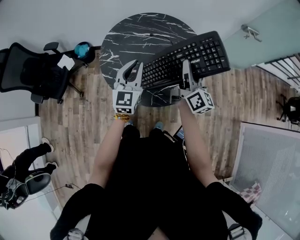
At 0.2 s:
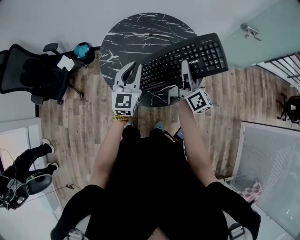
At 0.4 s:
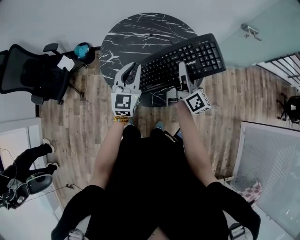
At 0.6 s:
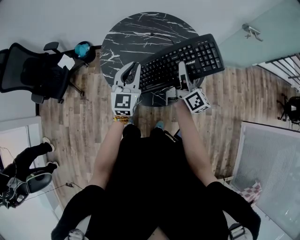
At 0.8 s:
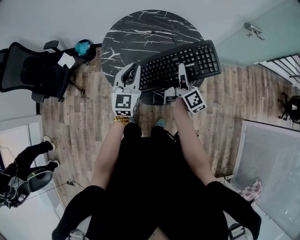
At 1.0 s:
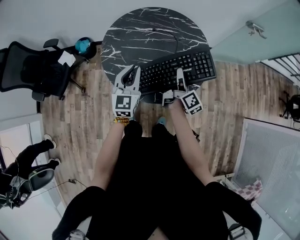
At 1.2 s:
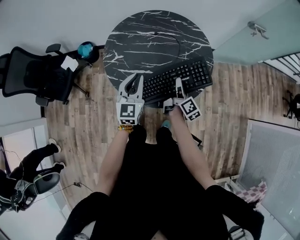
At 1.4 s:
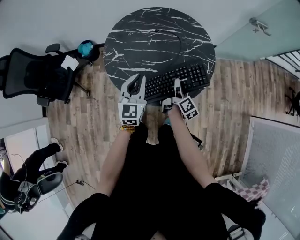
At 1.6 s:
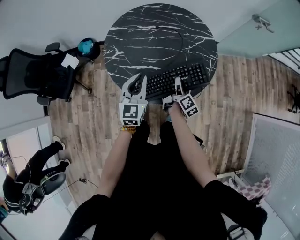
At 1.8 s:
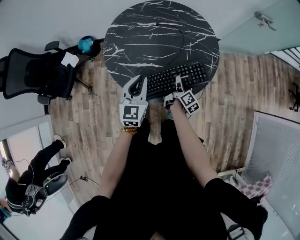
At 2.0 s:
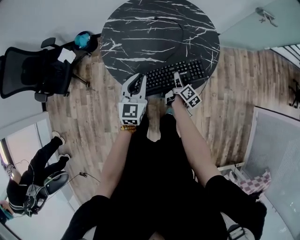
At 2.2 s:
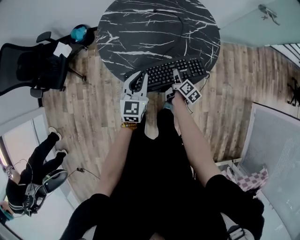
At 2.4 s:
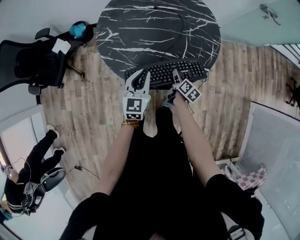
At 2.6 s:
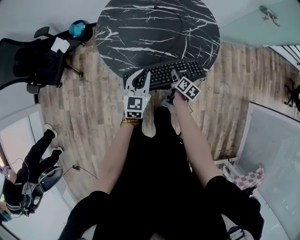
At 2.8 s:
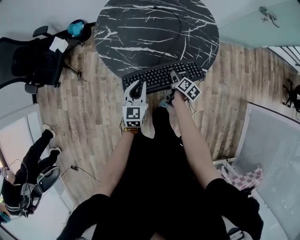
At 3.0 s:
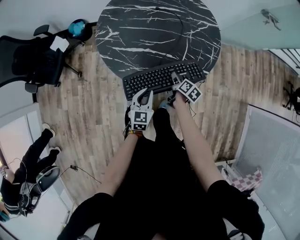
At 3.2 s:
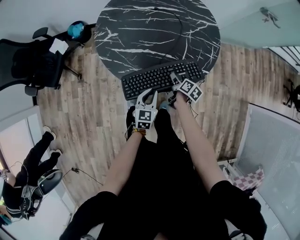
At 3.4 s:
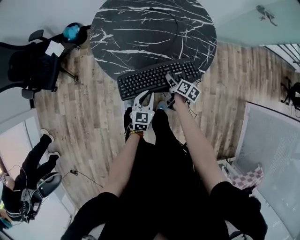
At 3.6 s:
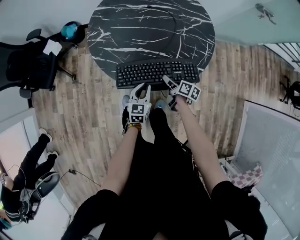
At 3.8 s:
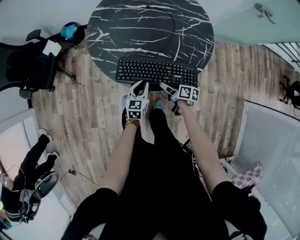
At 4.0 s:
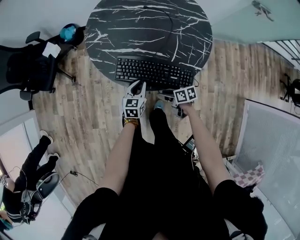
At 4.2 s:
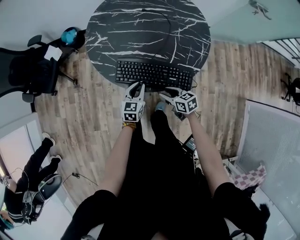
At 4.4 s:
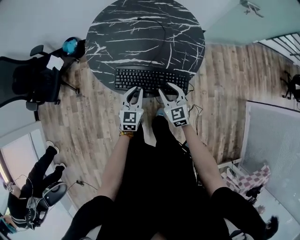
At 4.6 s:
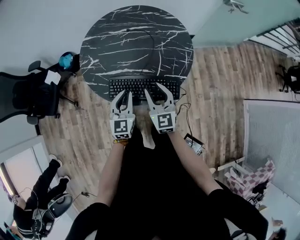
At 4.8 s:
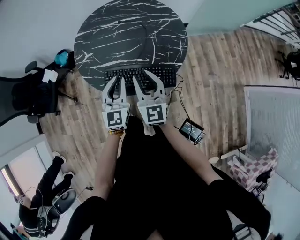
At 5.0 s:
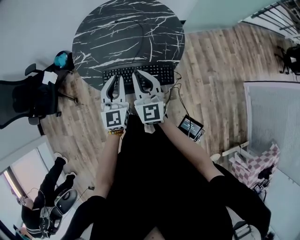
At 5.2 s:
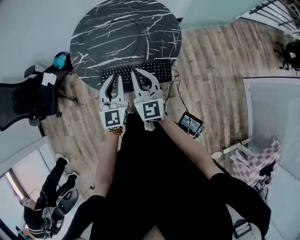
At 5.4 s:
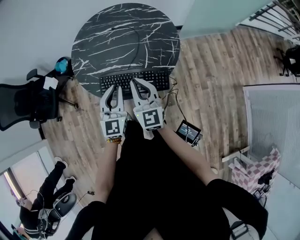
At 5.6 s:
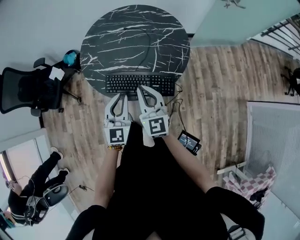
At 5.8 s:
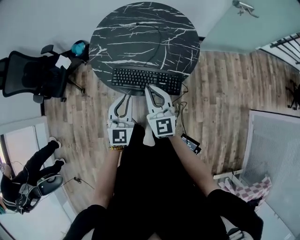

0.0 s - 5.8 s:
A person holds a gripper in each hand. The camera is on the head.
0.0 s - 1.4 s: The left gripper moves downward, some 5 cm, while the right gripper shifts roughly 25 cm downward, and rotates some 40 degrees.
1.4 s - 2.8 s: The right gripper goes about 15 cm downward, points its fingers roughly 30 degrees further downward, and opens; the left gripper is displaced downward and backward by about 15 cm.
2.8 s - 4.4 s: The right gripper goes some 15 cm upward, and rolls counterclockwise, seen from behind, by roughly 70 degrees, while the left gripper moves some 10 cm downward and comes back.
4.4 s - 5.8 s: The right gripper shifts some 15 cm upward, changes its angle by approximately 20 degrees, and closes up. The left gripper moves upward and backward, about 15 cm.

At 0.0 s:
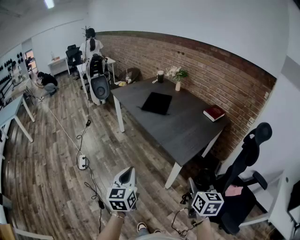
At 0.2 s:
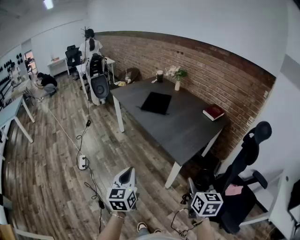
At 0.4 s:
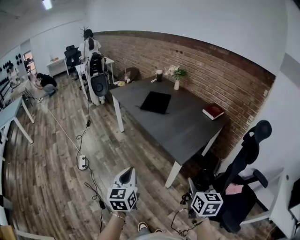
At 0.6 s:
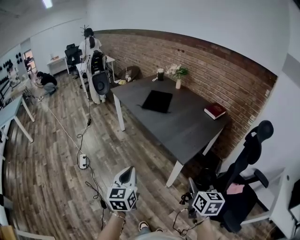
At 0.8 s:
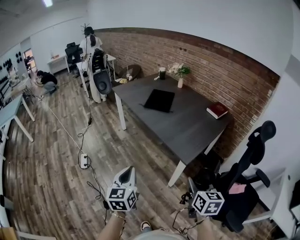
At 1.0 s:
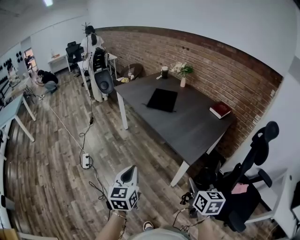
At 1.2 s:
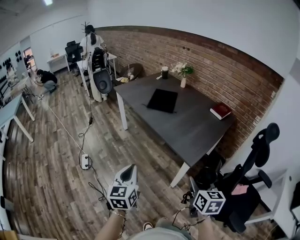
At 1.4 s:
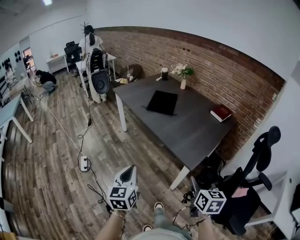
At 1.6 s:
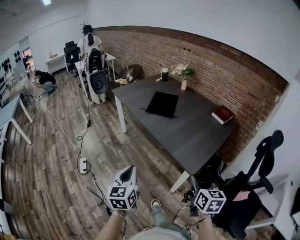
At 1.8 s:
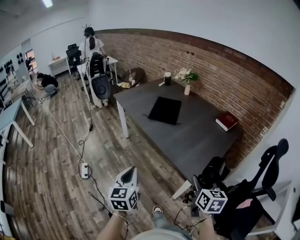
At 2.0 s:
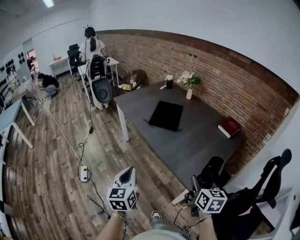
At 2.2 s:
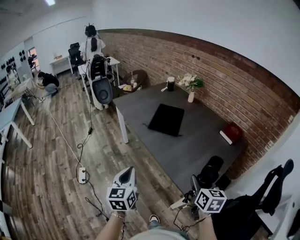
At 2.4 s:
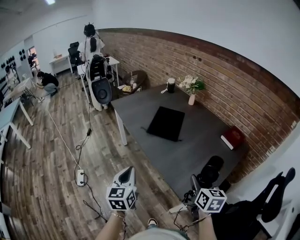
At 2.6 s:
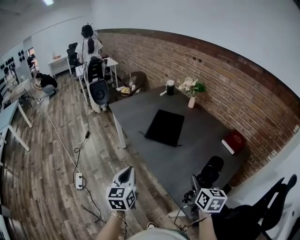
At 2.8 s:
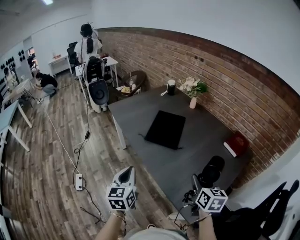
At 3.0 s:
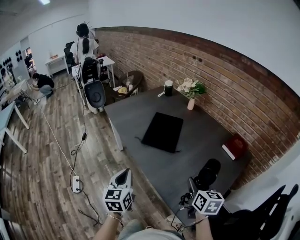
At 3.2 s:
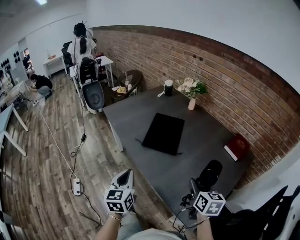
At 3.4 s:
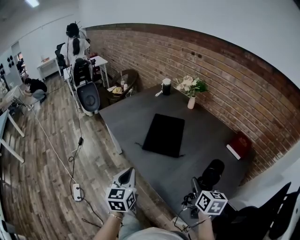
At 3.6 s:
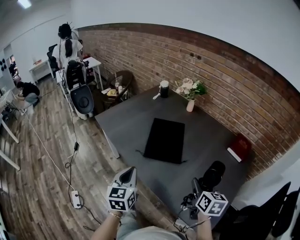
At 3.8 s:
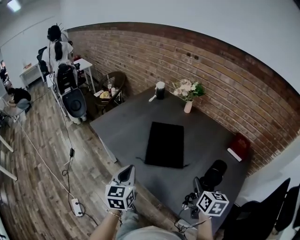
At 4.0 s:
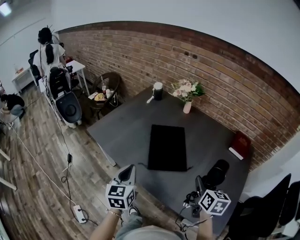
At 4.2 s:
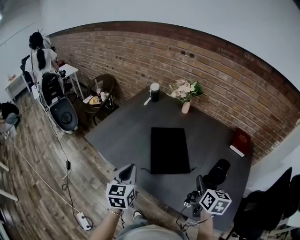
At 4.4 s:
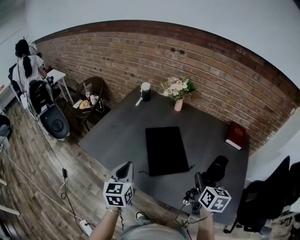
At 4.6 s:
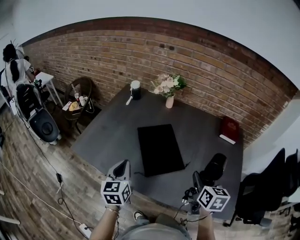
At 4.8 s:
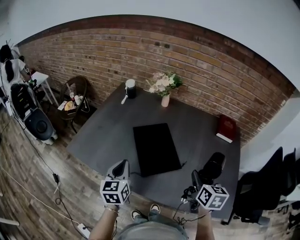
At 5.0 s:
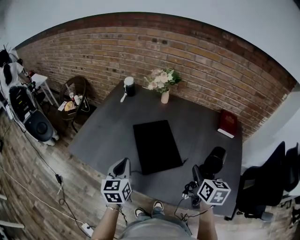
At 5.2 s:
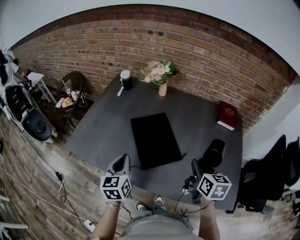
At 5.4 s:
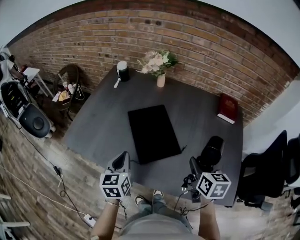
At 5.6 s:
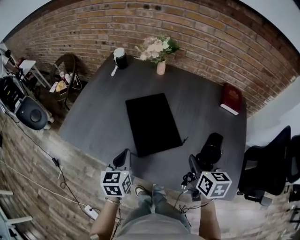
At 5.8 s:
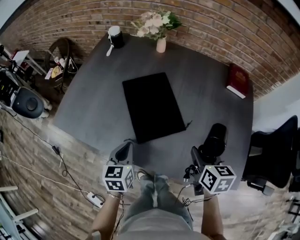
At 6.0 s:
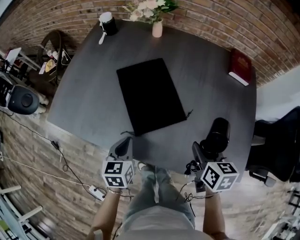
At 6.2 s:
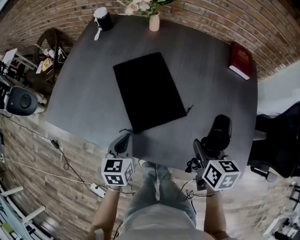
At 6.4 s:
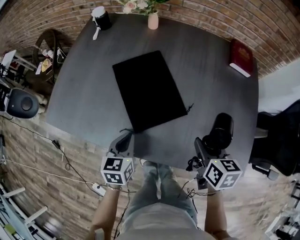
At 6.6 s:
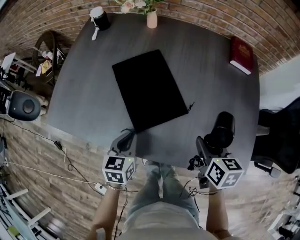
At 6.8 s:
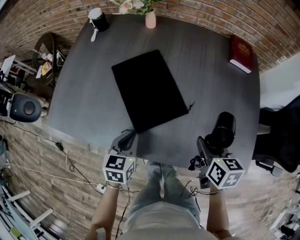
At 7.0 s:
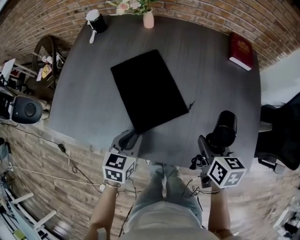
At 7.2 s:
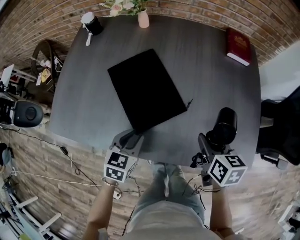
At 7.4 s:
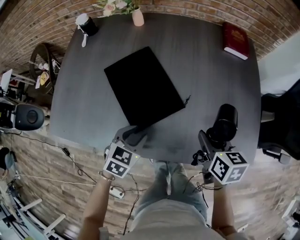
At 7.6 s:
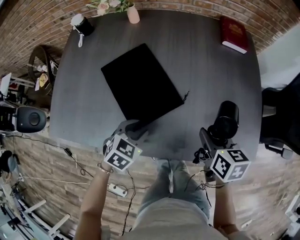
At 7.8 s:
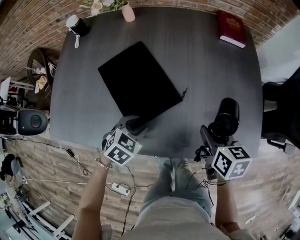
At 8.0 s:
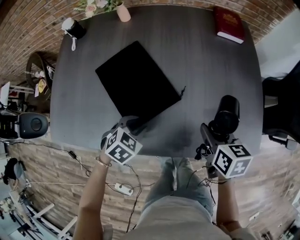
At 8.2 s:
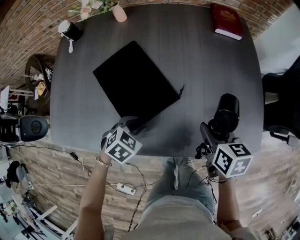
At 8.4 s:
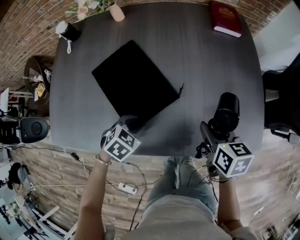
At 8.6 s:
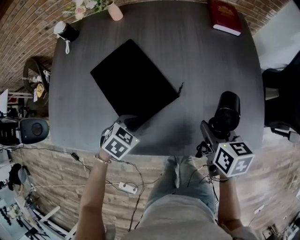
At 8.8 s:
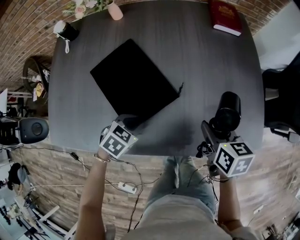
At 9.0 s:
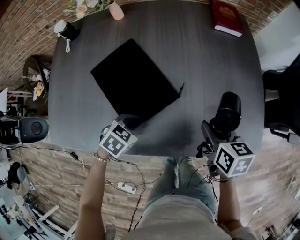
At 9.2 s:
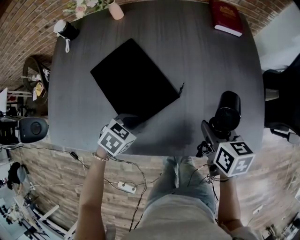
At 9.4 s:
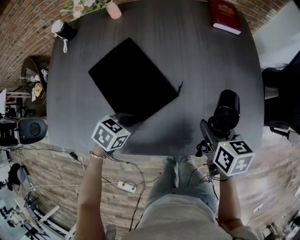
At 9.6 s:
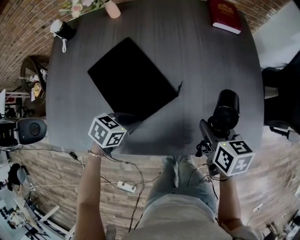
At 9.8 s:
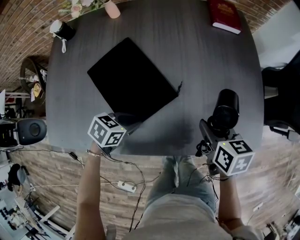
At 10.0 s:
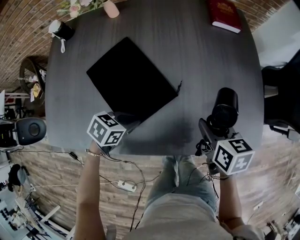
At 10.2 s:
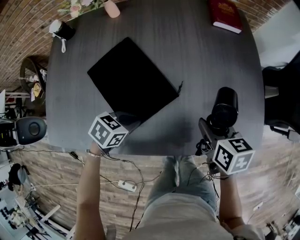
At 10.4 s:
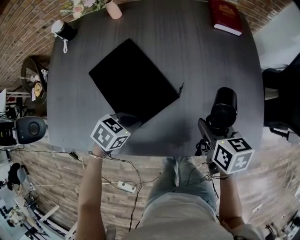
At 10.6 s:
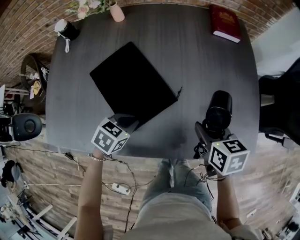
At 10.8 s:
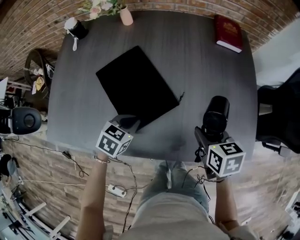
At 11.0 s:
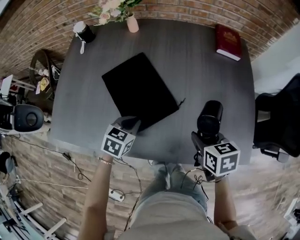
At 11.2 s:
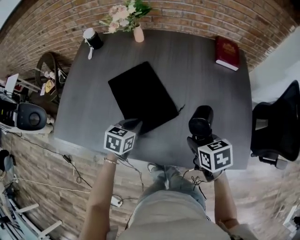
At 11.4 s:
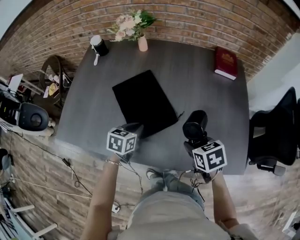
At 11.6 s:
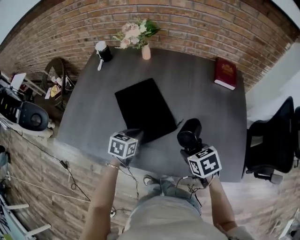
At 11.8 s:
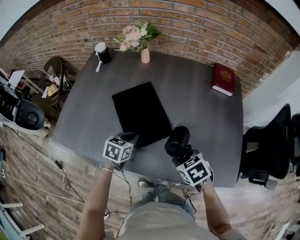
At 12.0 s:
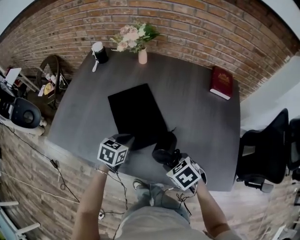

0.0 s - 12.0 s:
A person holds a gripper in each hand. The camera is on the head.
0.0 s - 1.6 s: The two grippers go about 10 cm forward and to the left.
1.6 s - 3.0 s: The two grippers go roughly 35 cm forward.
3.0 s - 4.4 s: The left gripper shifts by approximately 35 cm, and rotates about 30 degrees. The right gripper ends up about 20 cm from where it was, and swivels about 30 degrees.
4.4 s - 6.0 s: The left gripper heads downward and to the right, covering roughly 20 cm, and swivels some 20 degrees; the right gripper goes some 10 cm downward.
6.0 s - 7.6 s: The left gripper is displaced to the right by approximately 10 cm, turns by roughly 50 degrees, and opens up.
7.6 s - 9.0 s: The left gripper closes its fingers.
9.0 s - 10.4 s: There are only small adjustments of the grippers.
10.4 s - 12.0 s: The left gripper travels upward by approximately 5 cm, and rotates approximately 40 degrees. Meanwhile the right gripper shifts by approximately 10 cm, and twists some 50 degrees counterclockwise, seen from behind.

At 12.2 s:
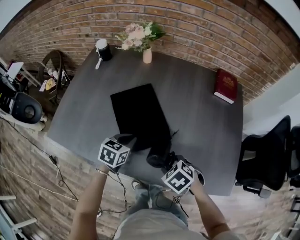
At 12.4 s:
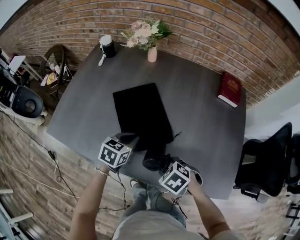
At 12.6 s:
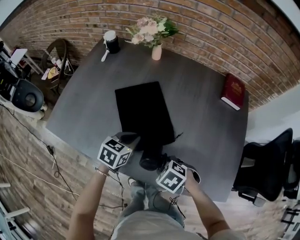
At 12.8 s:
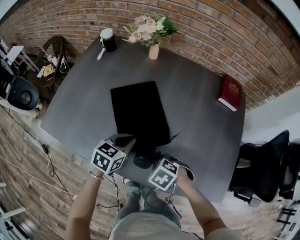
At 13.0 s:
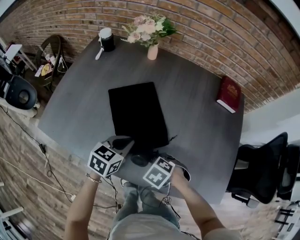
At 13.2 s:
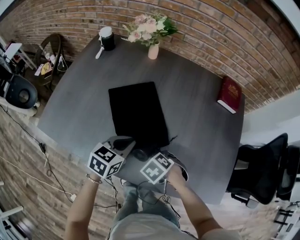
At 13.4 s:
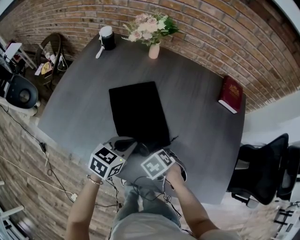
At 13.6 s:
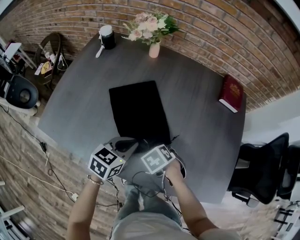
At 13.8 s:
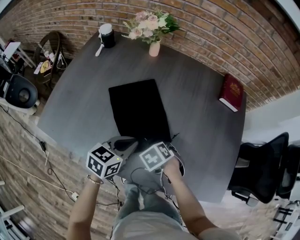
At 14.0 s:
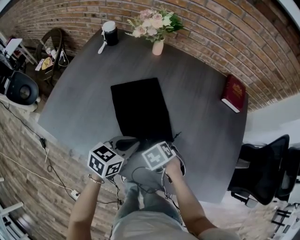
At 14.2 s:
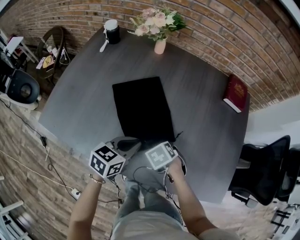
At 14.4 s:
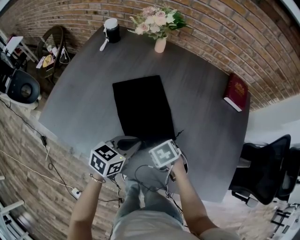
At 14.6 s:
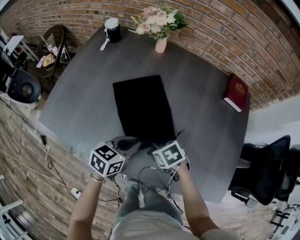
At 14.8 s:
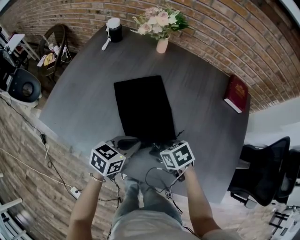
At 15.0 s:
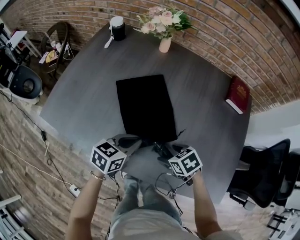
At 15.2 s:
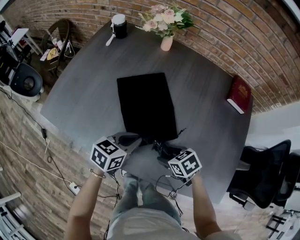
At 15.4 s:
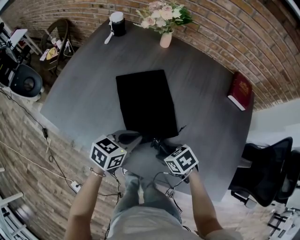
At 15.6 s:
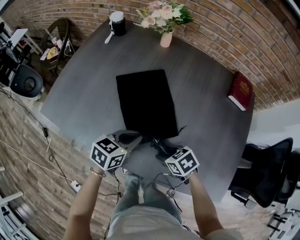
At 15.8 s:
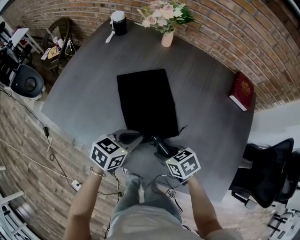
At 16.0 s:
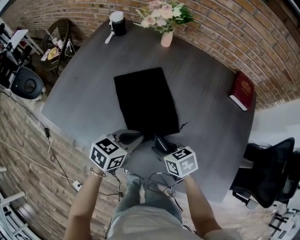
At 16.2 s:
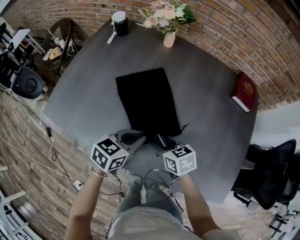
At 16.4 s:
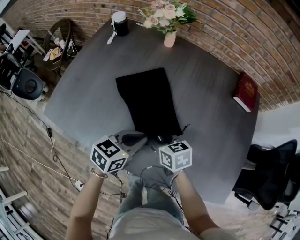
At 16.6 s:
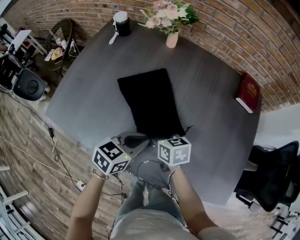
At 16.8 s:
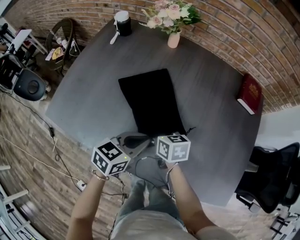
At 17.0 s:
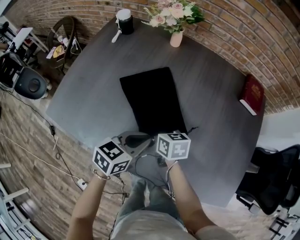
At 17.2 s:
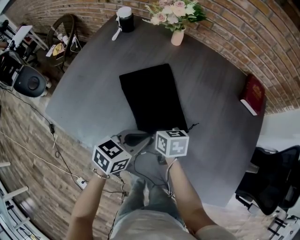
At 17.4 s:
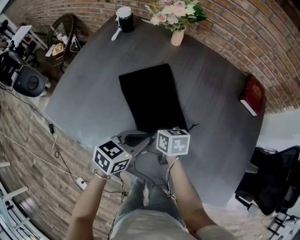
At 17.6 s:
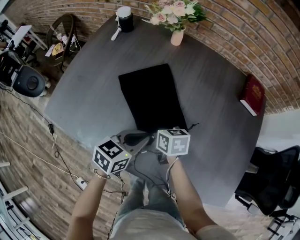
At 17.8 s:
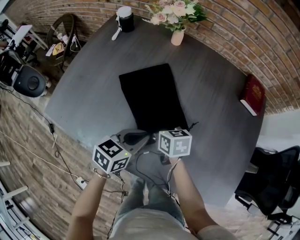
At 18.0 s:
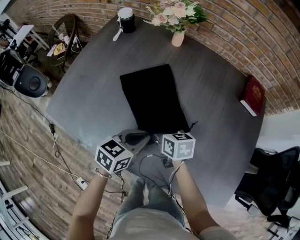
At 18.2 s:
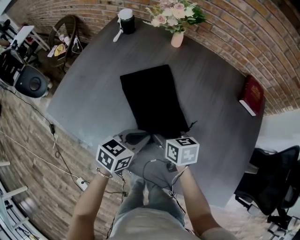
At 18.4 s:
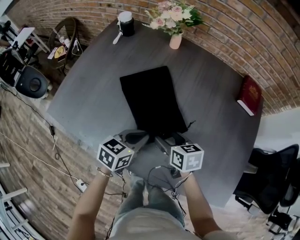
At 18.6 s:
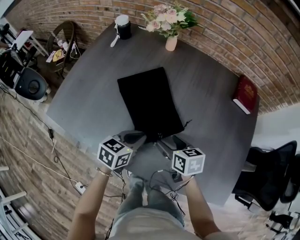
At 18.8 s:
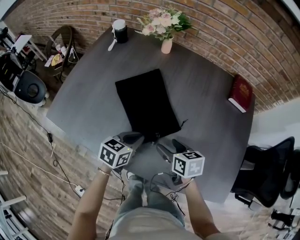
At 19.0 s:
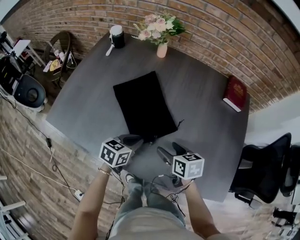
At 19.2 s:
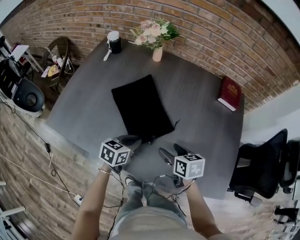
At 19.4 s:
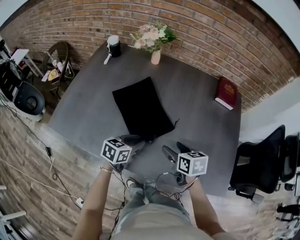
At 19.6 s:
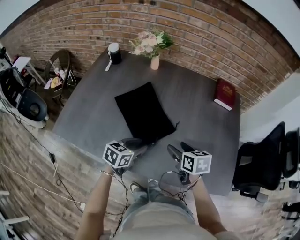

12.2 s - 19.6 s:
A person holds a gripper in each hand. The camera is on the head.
12.2 s - 13.6 s: The right gripper changes place by about 10 cm.
13.6 s - 15.2 s: The right gripper swivels some 30 degrees.
15.2 s - 16.6 s: The right gripper ends up approximately 15 cm from where it was, and changes its angle by some 30 degrees.
16.6 s - 18.2 s: The right gripper opens its fingers.
18.2 s - 19.6 s: The left gripper heads backward, covering some 5 cm, and opens. Meanwhile the right gripper heads to the right, backward and upward, covering approximately 15 cm.
